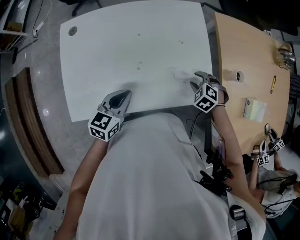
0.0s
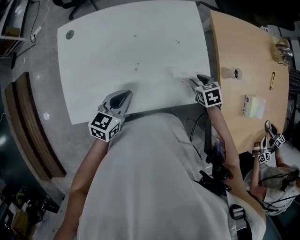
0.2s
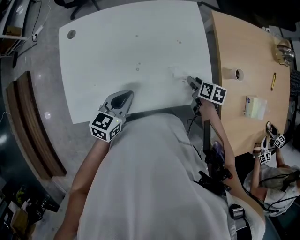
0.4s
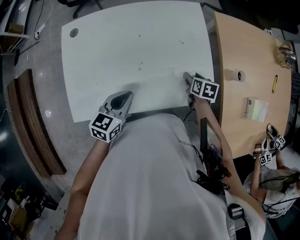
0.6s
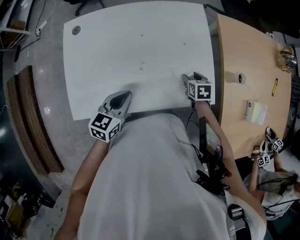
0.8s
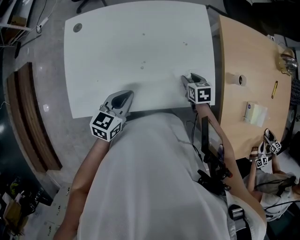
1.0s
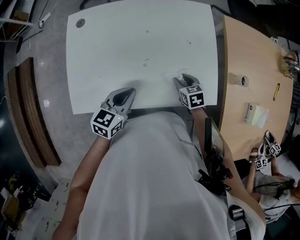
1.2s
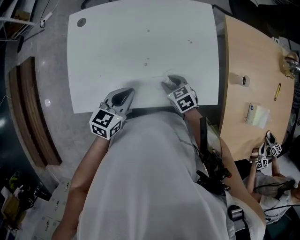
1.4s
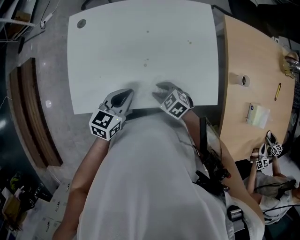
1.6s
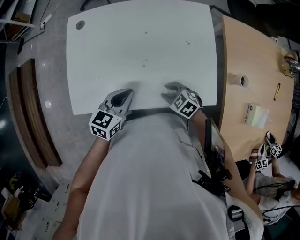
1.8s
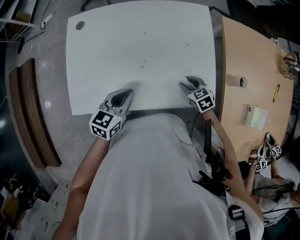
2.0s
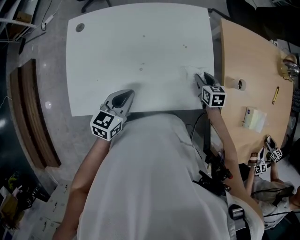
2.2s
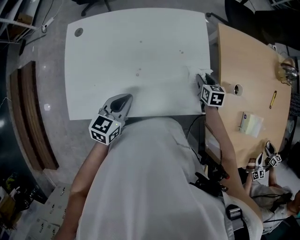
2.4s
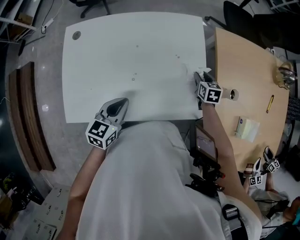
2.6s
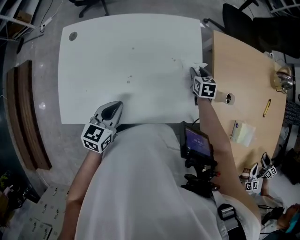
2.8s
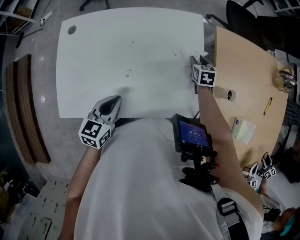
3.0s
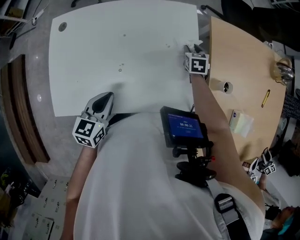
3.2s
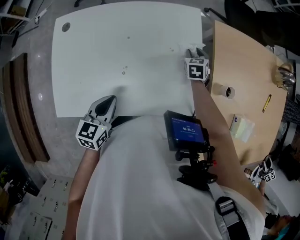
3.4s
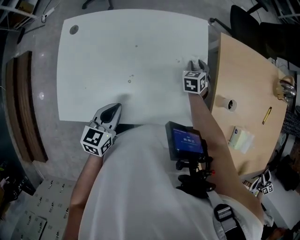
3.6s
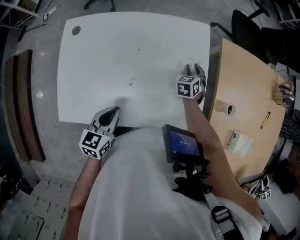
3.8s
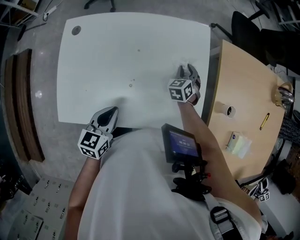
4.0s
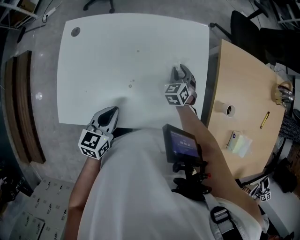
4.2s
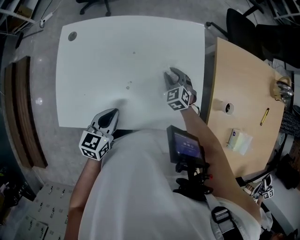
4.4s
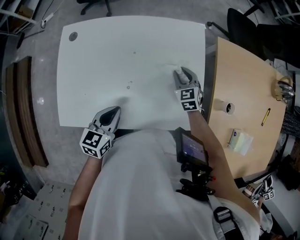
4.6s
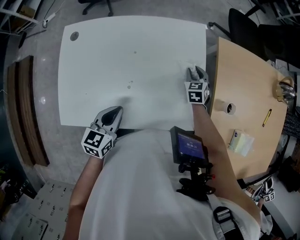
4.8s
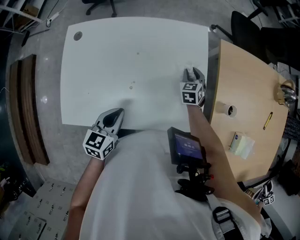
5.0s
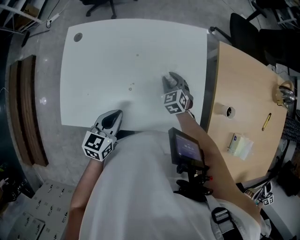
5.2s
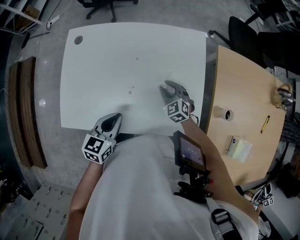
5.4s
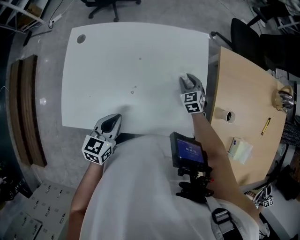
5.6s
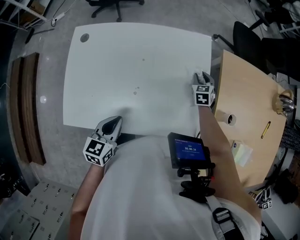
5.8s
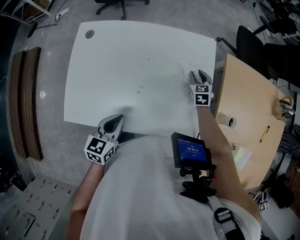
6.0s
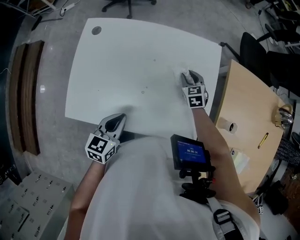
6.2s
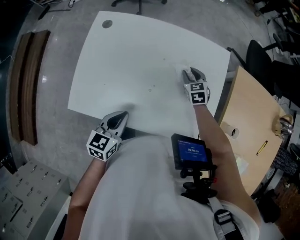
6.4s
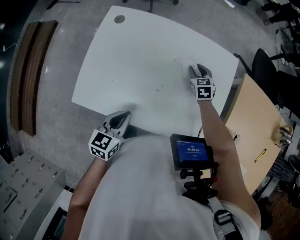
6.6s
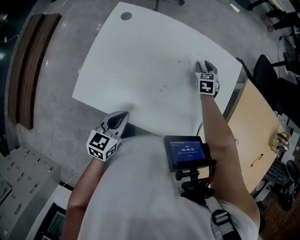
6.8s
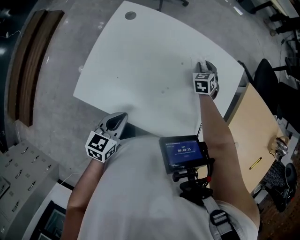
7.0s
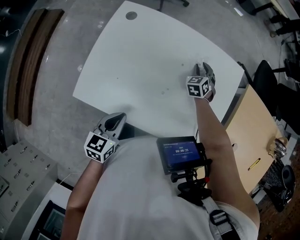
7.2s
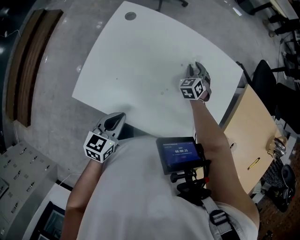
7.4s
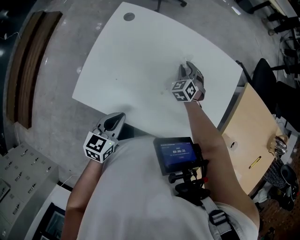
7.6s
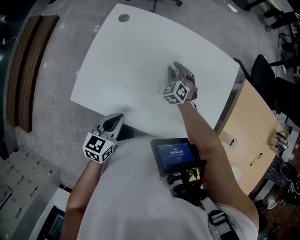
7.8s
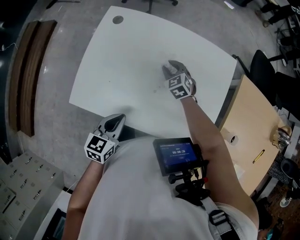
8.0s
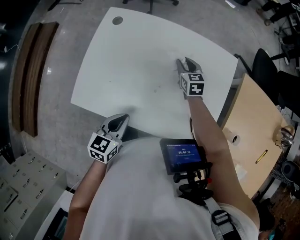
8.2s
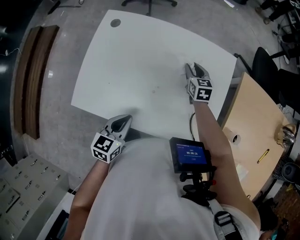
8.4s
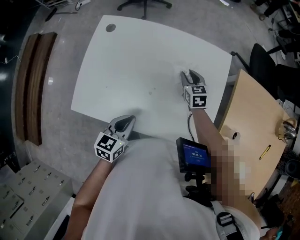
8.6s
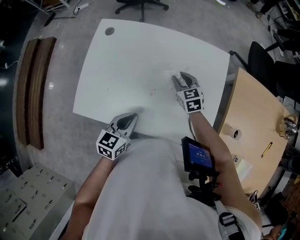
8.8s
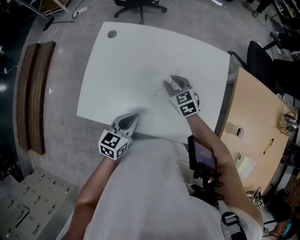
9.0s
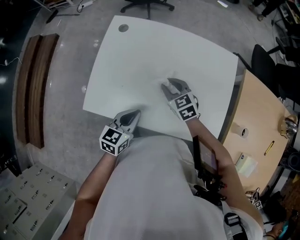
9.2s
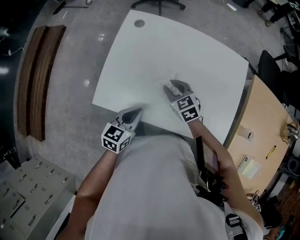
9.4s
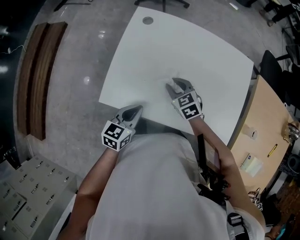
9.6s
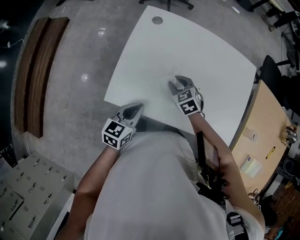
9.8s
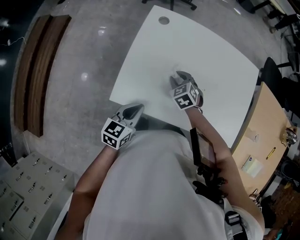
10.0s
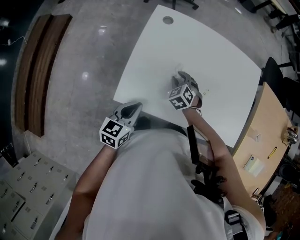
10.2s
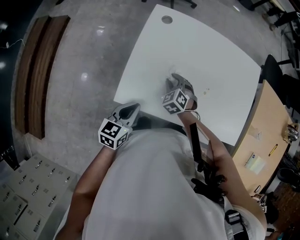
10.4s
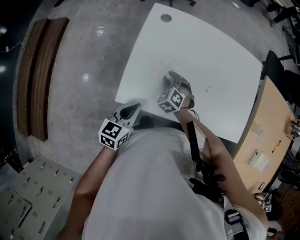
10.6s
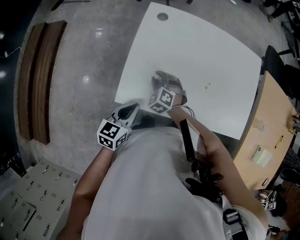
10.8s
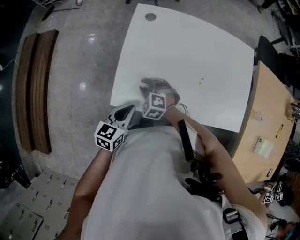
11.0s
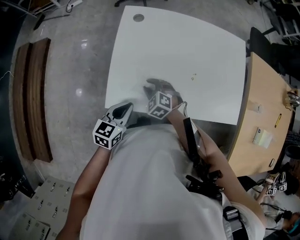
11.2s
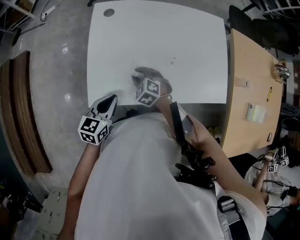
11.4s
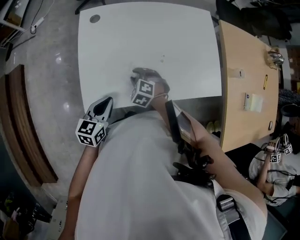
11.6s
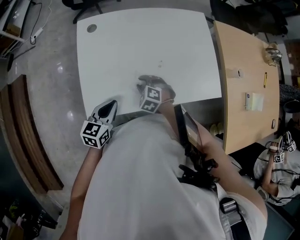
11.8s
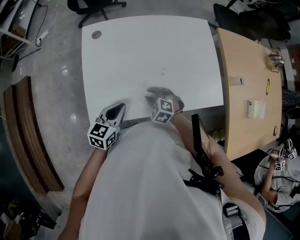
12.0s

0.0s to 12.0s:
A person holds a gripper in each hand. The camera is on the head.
0.0s to 1.6s: The right gripper shifts by about 20 cm, and turns by some 30 degrees.
1.6s to 3.0s: The right gripper ends up some 35 cm from where it was, and swivels approximately 50 degrees.
3.0s to 4.4s: The right gripper heads to the left and backward, covering approximately 15 cm, and swivels about 40 degrees.
4.4s to 6.0s: The right gripper goes left and right, approximately 15 cm each way, reversing 3 times, and rotates roughly 20 degrees.
6.0s to 7.6s: The left gripper is displaced to the left by approximately 5 cm. The right gripper moves to the left, about 20 cm, and turns by about 40 degrees.
7.6s to 9.0s: The right gripper moves left and right over about 15 cm, changing direction 2 times, and swivels about 30 degrees. Meanwhile the left gripper travels to the right by some 5 cm.
9.0s to 10.4s: Both grippers travel together to the left, some 25 cm. The right gripper rotates approximately 30 degrees.
10.4s to 12.0s: The left gripper goes some 10 cm to the right, and rotates some 20 degrees; the right gripper moves to the right and backward, some 15 cm.

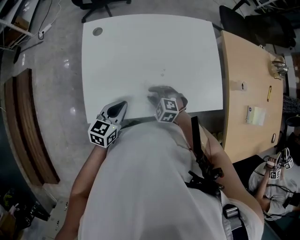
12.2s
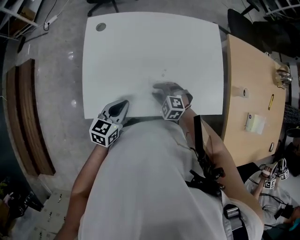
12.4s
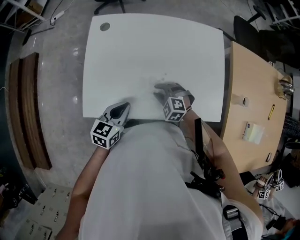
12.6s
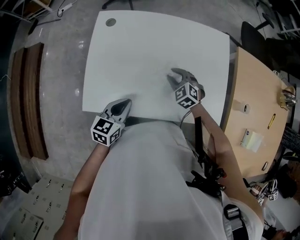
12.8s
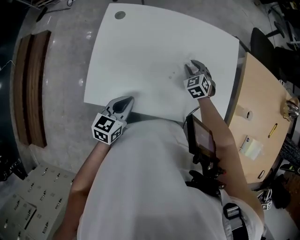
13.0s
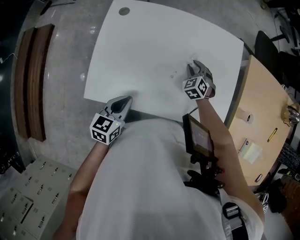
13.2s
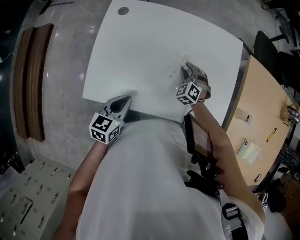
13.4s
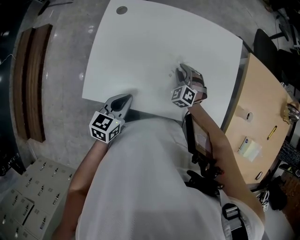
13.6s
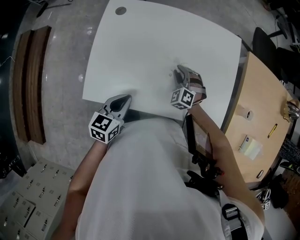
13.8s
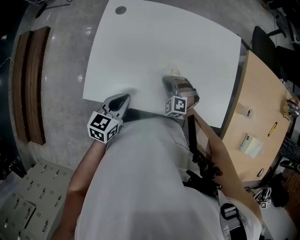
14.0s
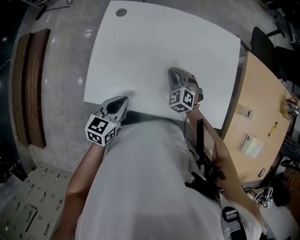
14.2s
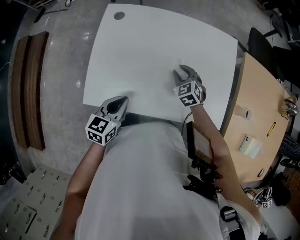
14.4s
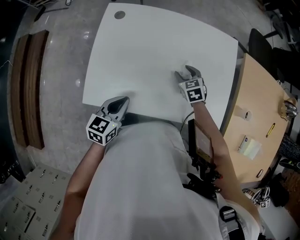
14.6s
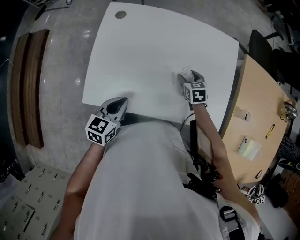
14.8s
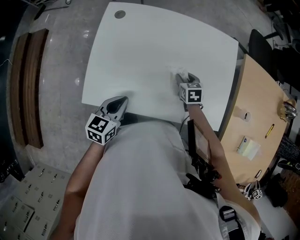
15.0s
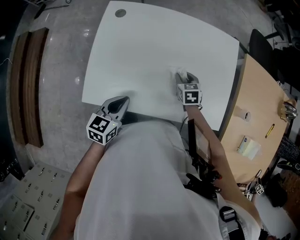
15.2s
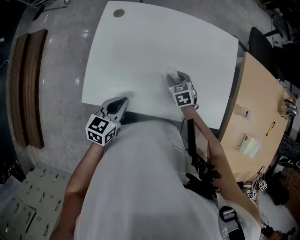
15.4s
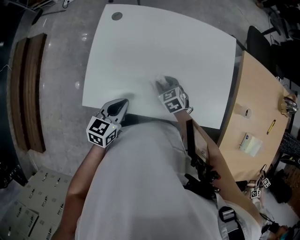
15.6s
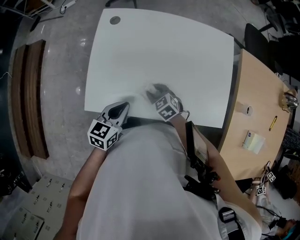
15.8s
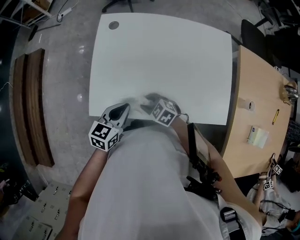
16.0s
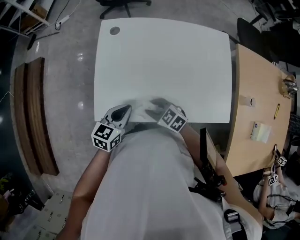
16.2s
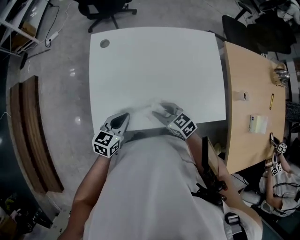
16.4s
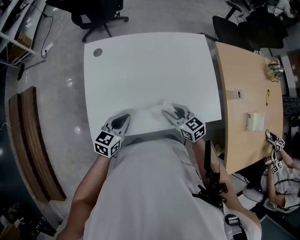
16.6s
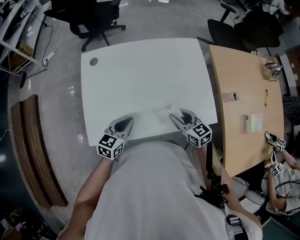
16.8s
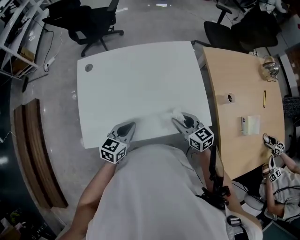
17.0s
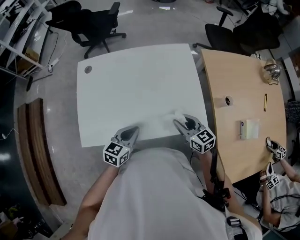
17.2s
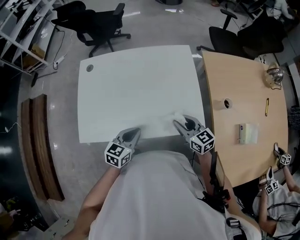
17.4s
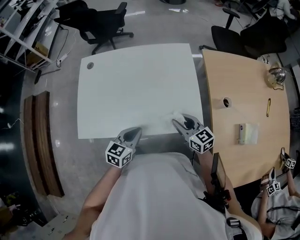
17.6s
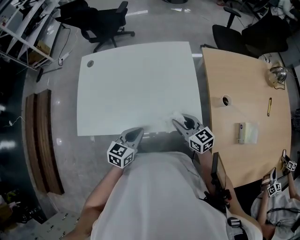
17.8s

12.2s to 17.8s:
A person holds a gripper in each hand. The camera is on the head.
12.2s to 13.6s: The right gripper travels forward and to the right by about 15 cm, and rotates about 30 degrees.
13.6s to 15.0s: The right gripper twists approximately 60 degrees clockwise, seen from behind, and closes, then reopens.
15.0s to 16.4s: The right gripper moves to the left, backward and upward, roughly 20 cm, and swivels some 30 degrees.
16.4s to 17.8s: Both grippers move to the right, approximately 25 cm. The right gripper turns by about 20 degrees.

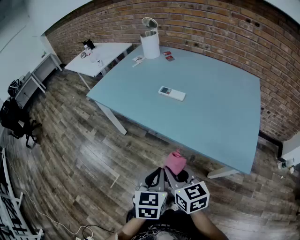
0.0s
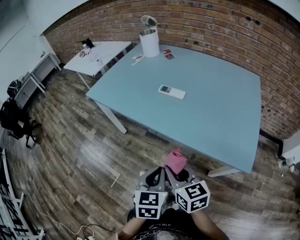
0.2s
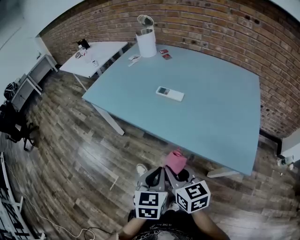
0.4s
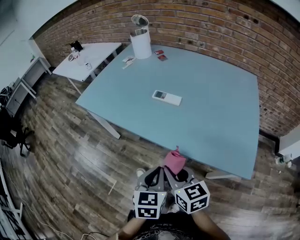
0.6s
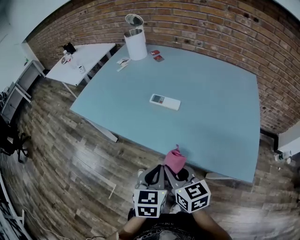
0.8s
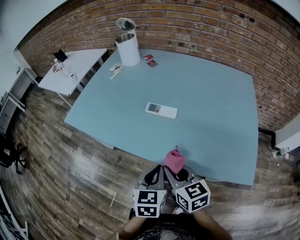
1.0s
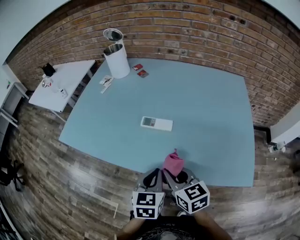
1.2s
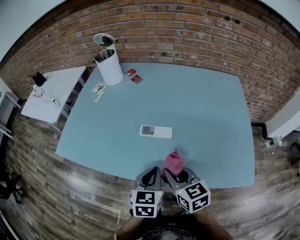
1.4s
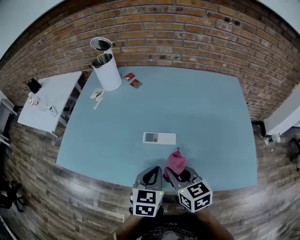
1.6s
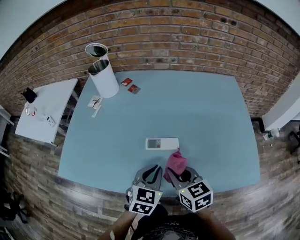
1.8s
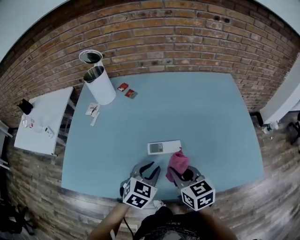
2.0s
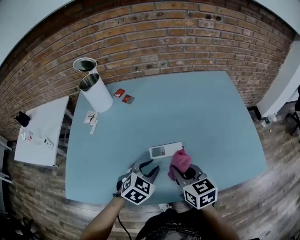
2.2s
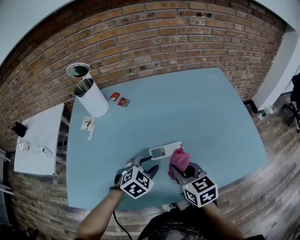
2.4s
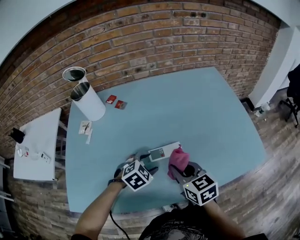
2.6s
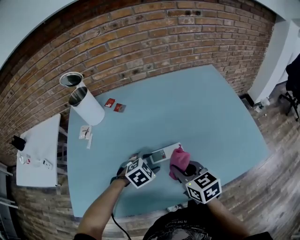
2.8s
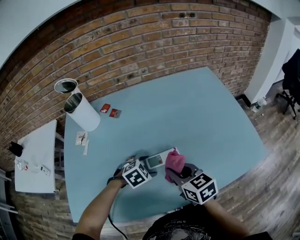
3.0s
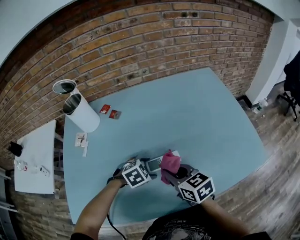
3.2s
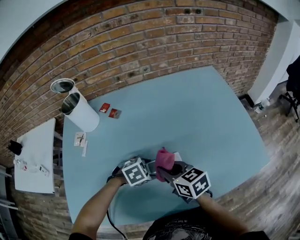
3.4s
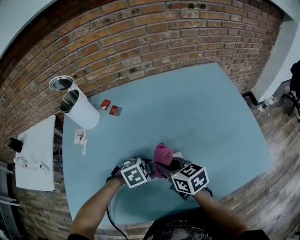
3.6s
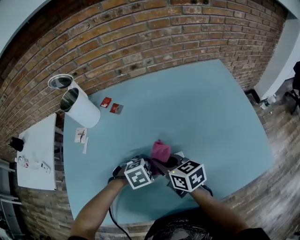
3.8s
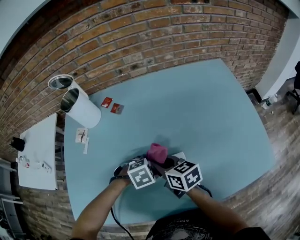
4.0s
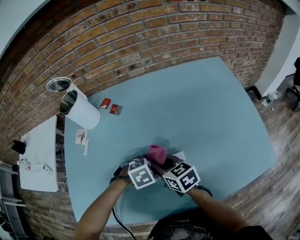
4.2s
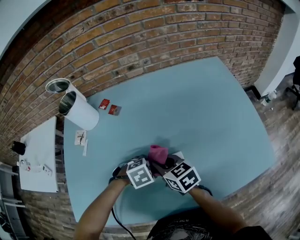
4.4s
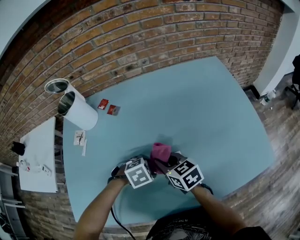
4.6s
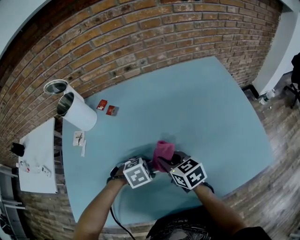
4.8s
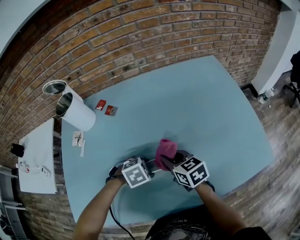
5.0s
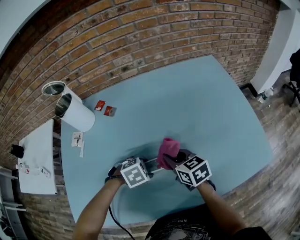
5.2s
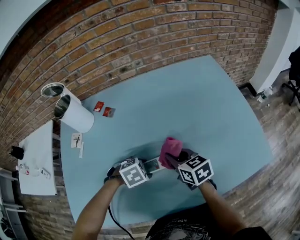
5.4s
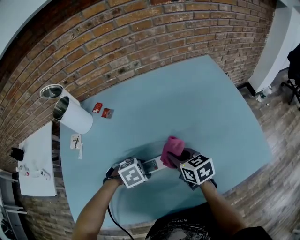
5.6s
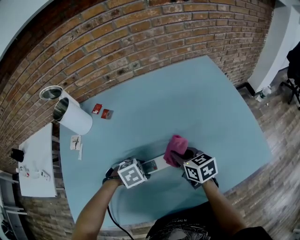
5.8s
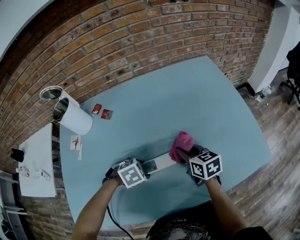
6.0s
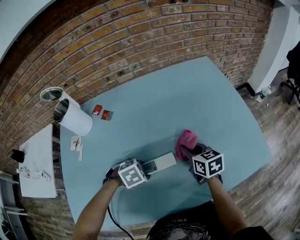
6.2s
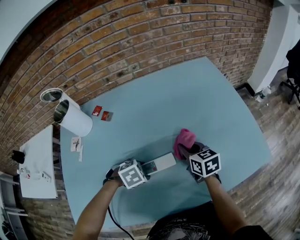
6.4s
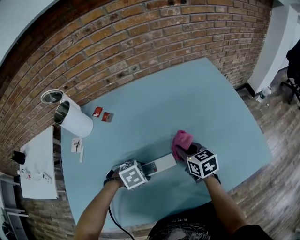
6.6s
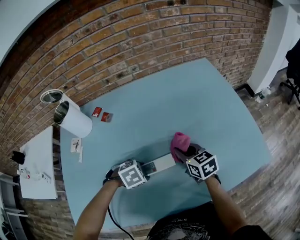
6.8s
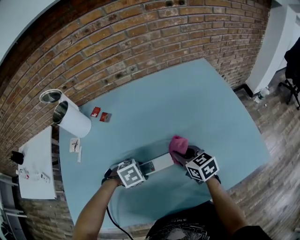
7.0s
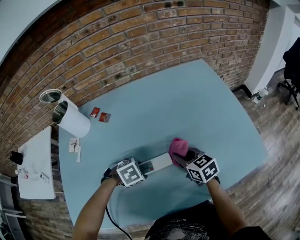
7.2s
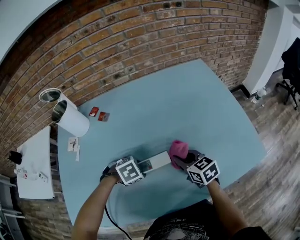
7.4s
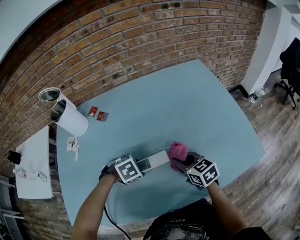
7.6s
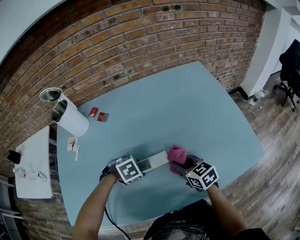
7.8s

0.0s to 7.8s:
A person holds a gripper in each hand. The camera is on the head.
0.0s to 1.6s: Both grippers travel together forward, roughly 30 cm. The right gripper swivels about 20 degrees. The left gripper changes its angle by about 30 degrees.
1.6s to 3.2s: The left gripper moves roughly 20 cm, angles its fingers downward, by about 30 degrees, and opens its fingers. Meanwhile the right gripper changes place by about 10 cm.
3.2s to 4.6s: The right gripper moves some 10 cm.
4.6s to 6.2s: The right gripper shifts by some 15 cm.
6.2s to 7.8s: The right gripper changes place by roughly 10 cm.
